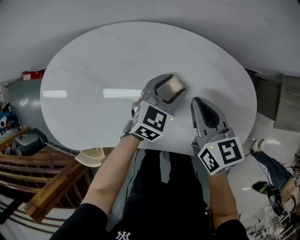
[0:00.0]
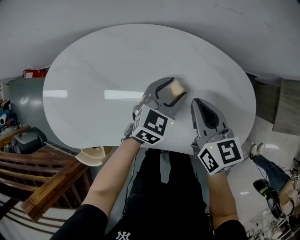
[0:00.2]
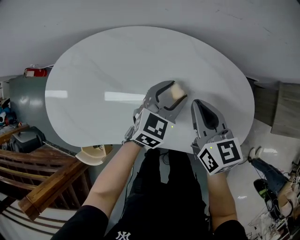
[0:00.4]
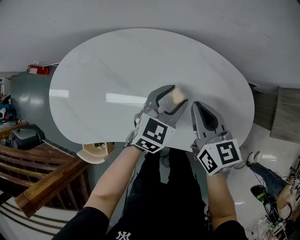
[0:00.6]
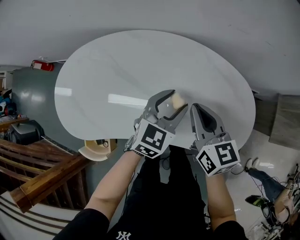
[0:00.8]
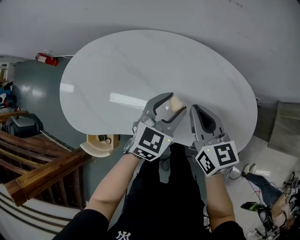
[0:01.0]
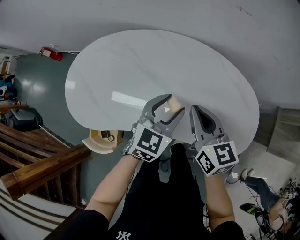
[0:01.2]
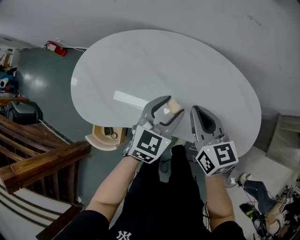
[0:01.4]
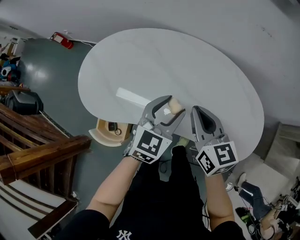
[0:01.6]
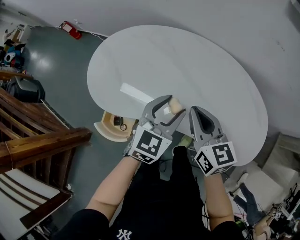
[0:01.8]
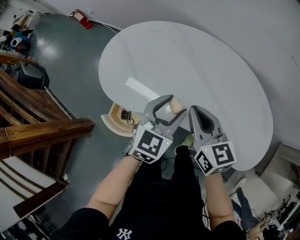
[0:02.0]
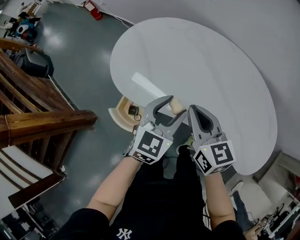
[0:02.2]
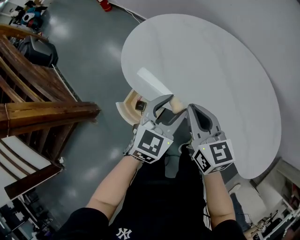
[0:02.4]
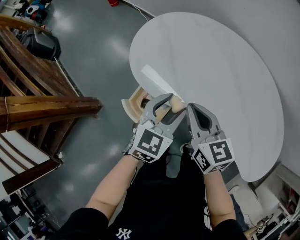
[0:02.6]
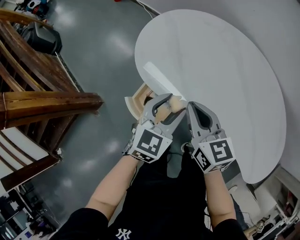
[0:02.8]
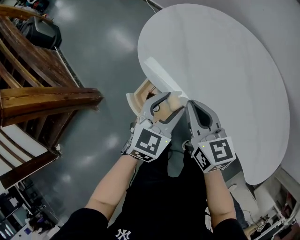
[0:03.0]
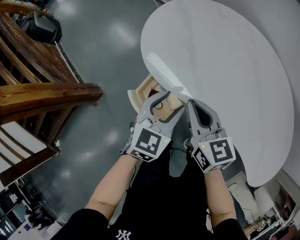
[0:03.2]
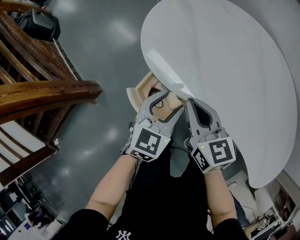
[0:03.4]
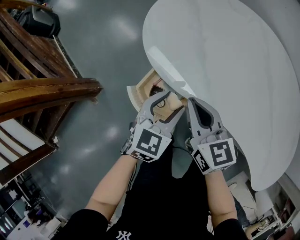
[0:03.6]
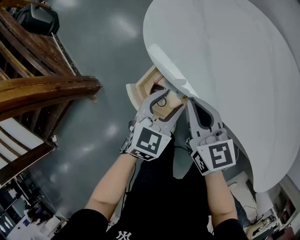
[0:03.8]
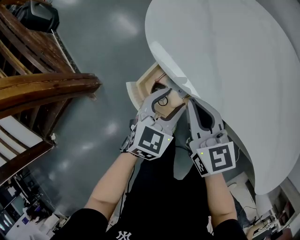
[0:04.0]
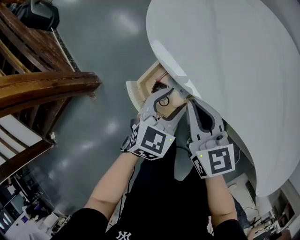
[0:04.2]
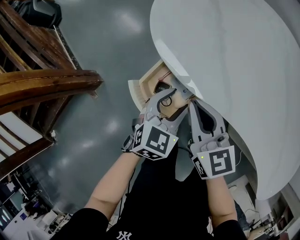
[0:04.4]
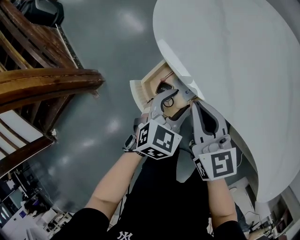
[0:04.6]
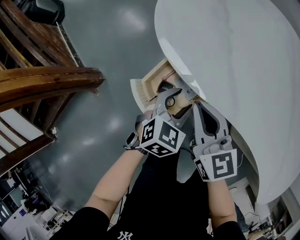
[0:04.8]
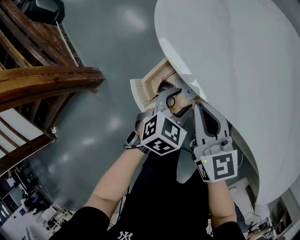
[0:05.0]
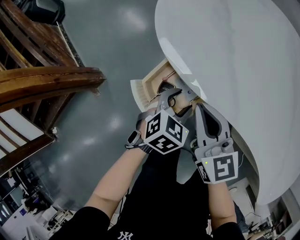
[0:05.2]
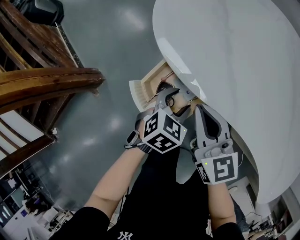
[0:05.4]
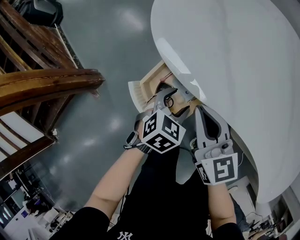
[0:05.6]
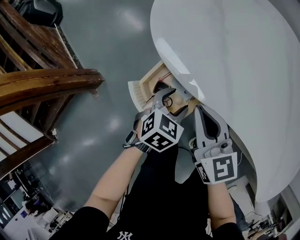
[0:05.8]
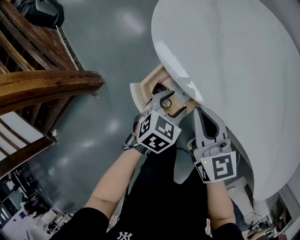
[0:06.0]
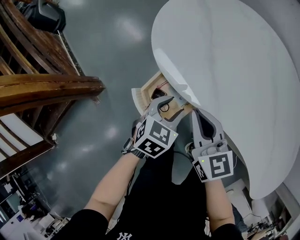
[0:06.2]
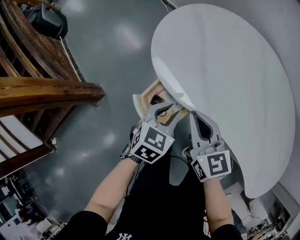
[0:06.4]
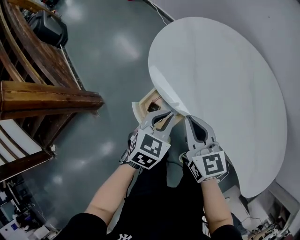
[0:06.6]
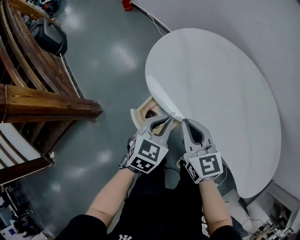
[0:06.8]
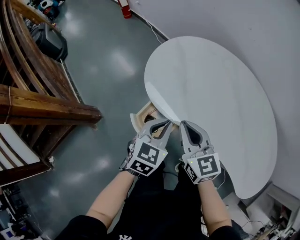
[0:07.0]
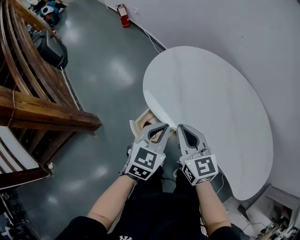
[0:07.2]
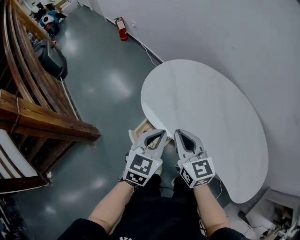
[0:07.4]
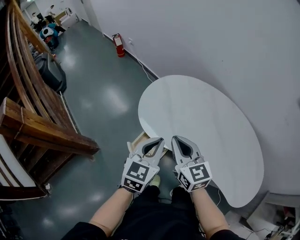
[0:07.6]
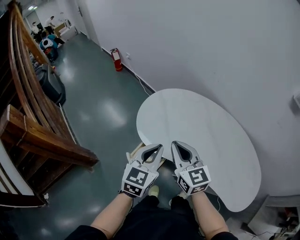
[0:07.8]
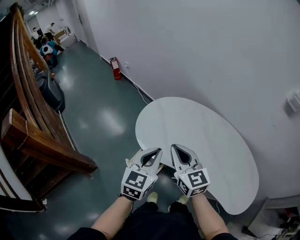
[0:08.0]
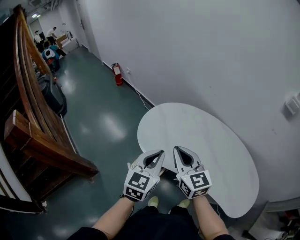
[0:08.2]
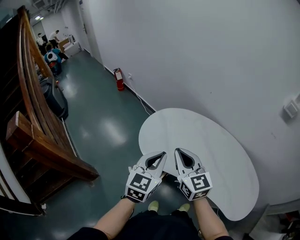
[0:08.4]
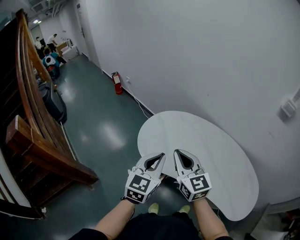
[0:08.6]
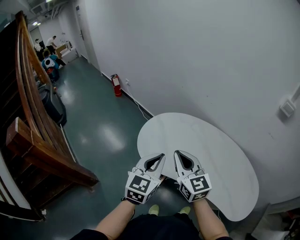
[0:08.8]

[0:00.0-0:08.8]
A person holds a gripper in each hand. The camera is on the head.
0:00.0 to 0:01.4: Both grippers move to the left, upward and backward, approximately 25 cm. The left gripper turns by some 20 degrees.
0:01.4 to 0:03.0: The right gripper changes place by approximately 40 cm, and changes its angle by approximately 30 degrees; the left gripper changes place by about 35 cm, and swivels roughly 30 degrees.
0:03.0 to 0:04.4: The right gripper is displaced downward and to the left by some 15 cm; the left gripper moves downward, approximately 15 cm.
0:04.4 to 0:05.8: The left gripper moves downward, some 5 cm.
0:05.8 to 0:07.4: The right gripper is displaced upward by approximately 25 cm. The left gripper travels upward by approximately 35 cm, swivels about 30 degrees, and closes up.
0:07.4 to 0:08.8: The grippers both shift upward by about 15 cm.

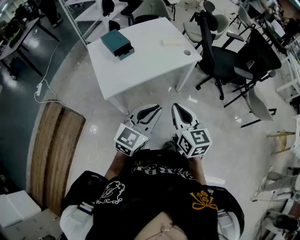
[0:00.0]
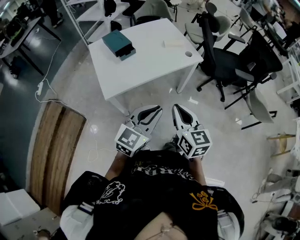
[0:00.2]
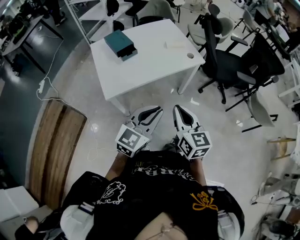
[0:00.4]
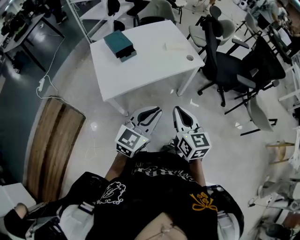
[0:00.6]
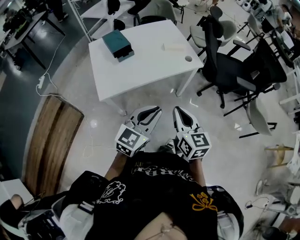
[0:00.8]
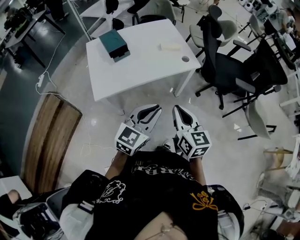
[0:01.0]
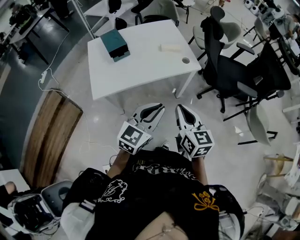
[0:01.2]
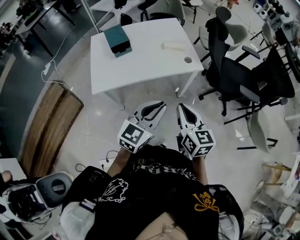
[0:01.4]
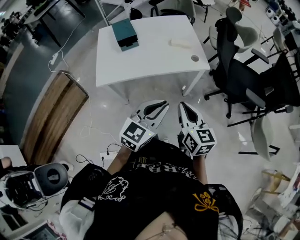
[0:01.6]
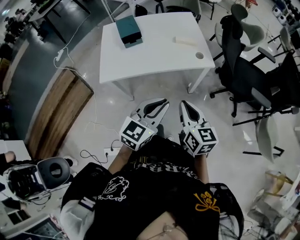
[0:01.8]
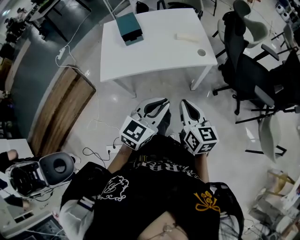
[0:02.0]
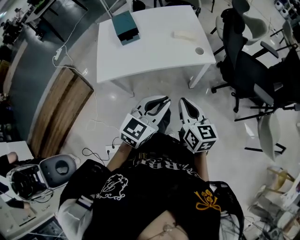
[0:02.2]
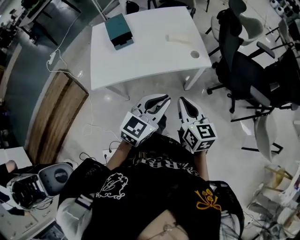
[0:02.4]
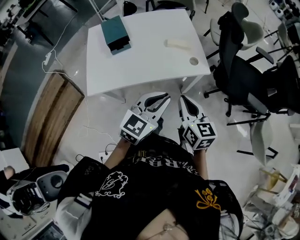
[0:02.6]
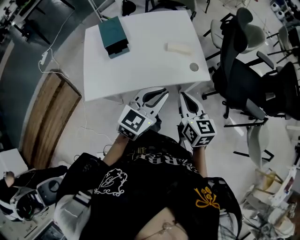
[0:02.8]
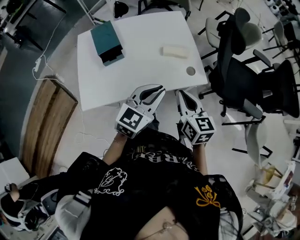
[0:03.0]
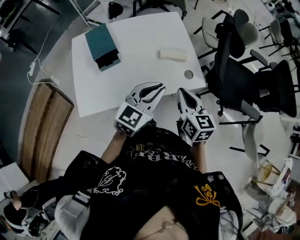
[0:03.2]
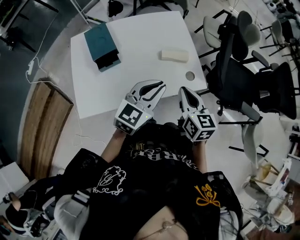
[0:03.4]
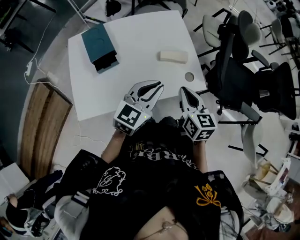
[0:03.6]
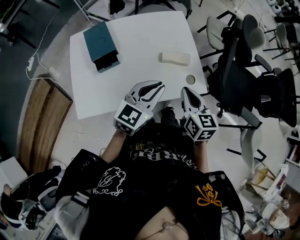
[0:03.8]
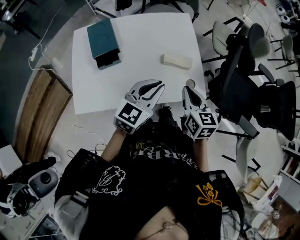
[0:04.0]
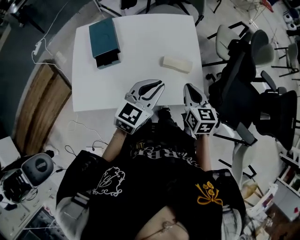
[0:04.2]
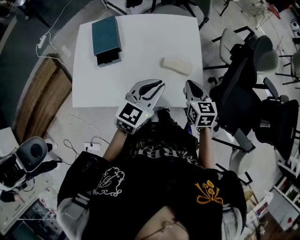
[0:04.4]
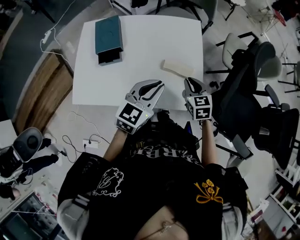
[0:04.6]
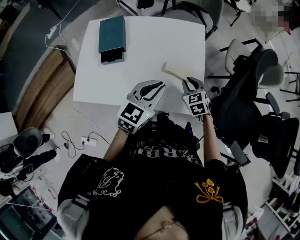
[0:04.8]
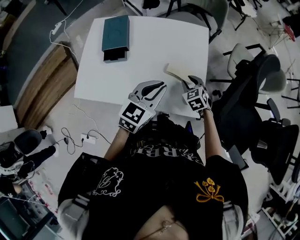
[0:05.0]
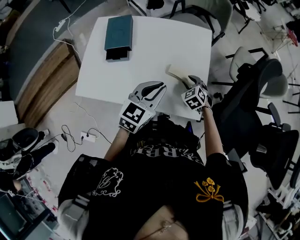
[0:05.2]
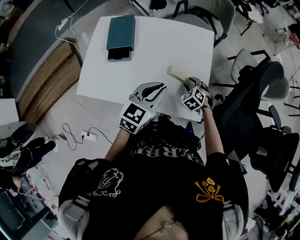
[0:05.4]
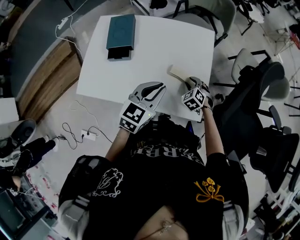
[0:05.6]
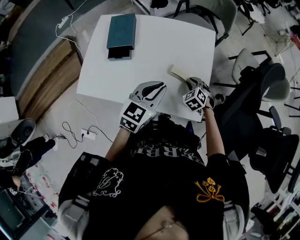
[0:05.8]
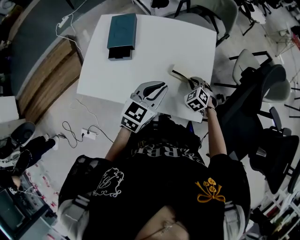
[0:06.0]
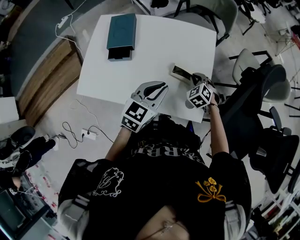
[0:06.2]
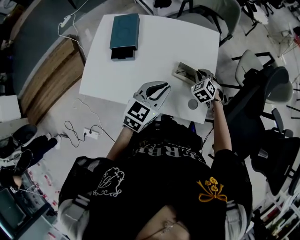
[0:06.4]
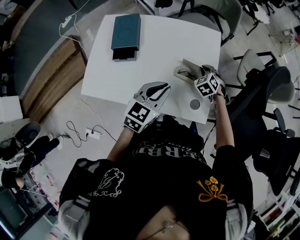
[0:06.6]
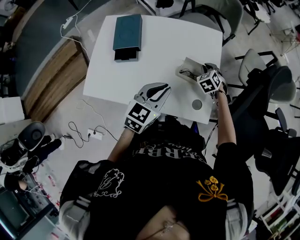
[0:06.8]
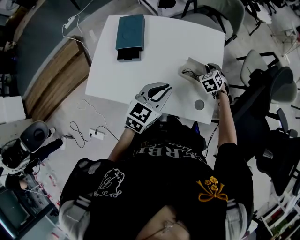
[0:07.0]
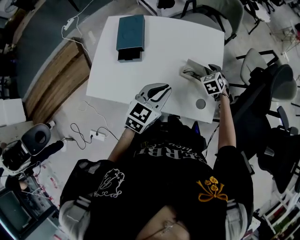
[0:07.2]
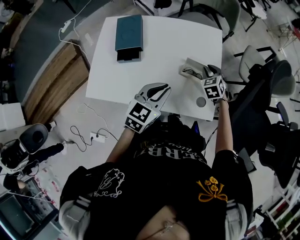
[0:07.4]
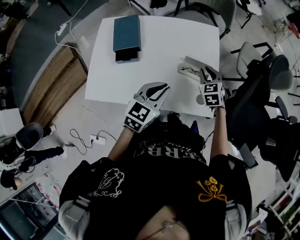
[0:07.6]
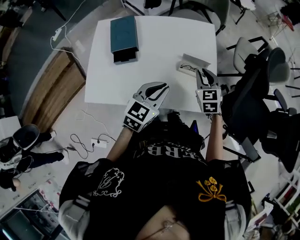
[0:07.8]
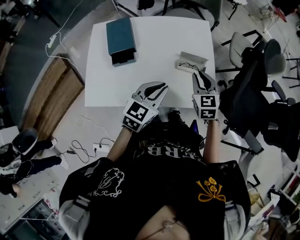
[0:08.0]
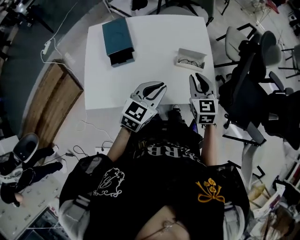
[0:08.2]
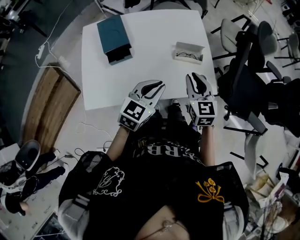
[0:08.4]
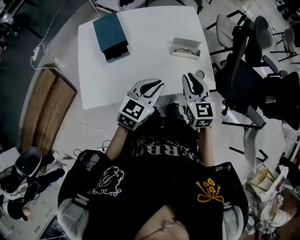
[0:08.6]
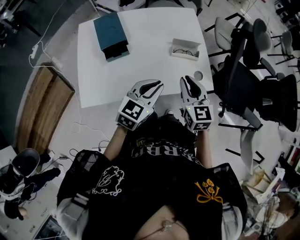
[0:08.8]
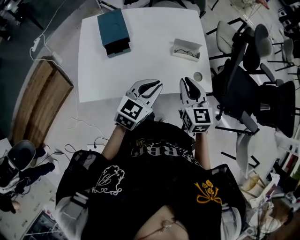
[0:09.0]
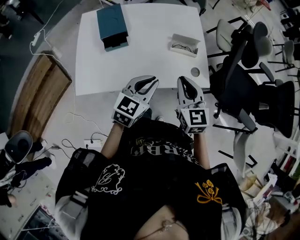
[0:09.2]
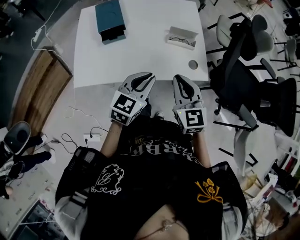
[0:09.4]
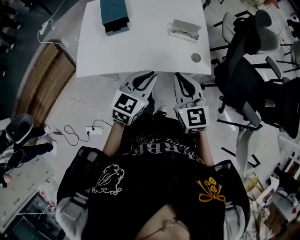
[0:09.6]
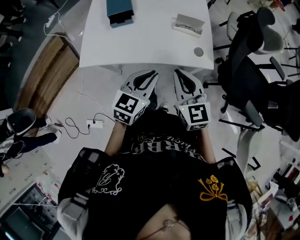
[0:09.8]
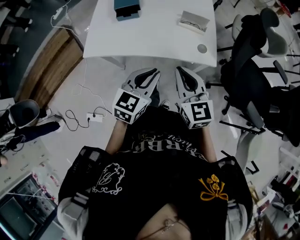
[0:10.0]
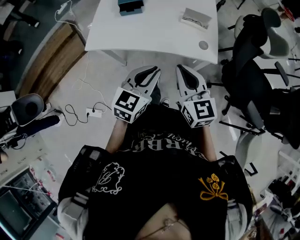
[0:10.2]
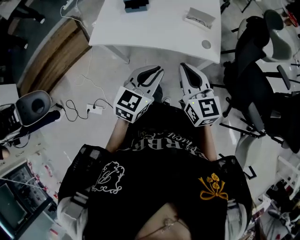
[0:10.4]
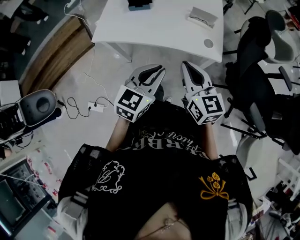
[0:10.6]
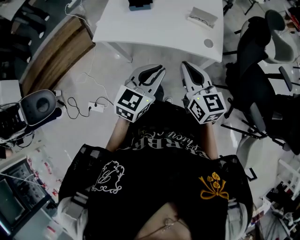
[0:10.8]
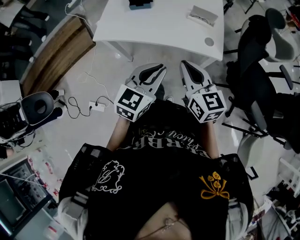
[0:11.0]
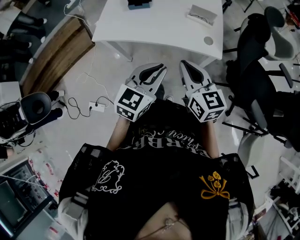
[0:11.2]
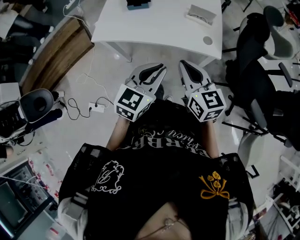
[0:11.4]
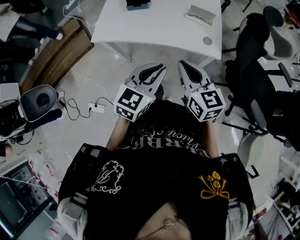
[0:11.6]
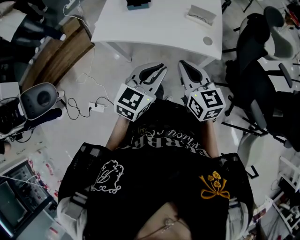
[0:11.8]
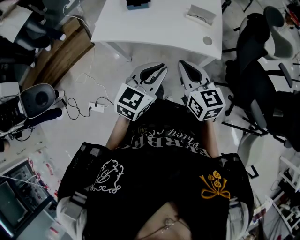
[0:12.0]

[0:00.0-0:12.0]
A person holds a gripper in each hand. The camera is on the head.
0:00.0 to 0:01.6: Both grippers move to the right and forward, roughly 20 cm.
0:01.6 to 0:03.0: Both grippers travel together forward, approximately 25 cm.
0:03.0 to 0:04.4: Both grippers move forward, about 20 cm.
0:04.4 to 0:06.0: The right gripper heads downward and forward, covering some 15 cm, rotates around the line of its fingers by about 50 degrees, counterclockwise from behind, and opens, then closes once more.
0:06.0 to 0:07.6: The left gripper shifts by about 5 cm. Meanwhile the right gripper goes approximately 10 cm upward, moves approximately 10 cm forward and comes back, and swivels roughly 30 degrees.
0:07.6 to 0:09.0: The left gripper travels backward by approximately 10 cm. The right gripper moves backward and upward, approximately 25 cm, and rotates about 30 degrees.
0:09.0 to 0:10.4: The right gripper heads backward, covering some 20 cm, and turns by roughly 30 degrees; the left gripper goes some 20 cm backward and to the right, and changes its angle by some 20 degrees.
0:10.4 to 0:12.0: The grippers make only small movements.

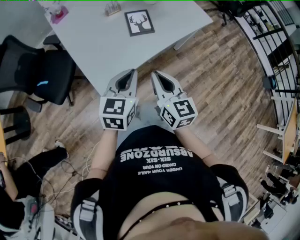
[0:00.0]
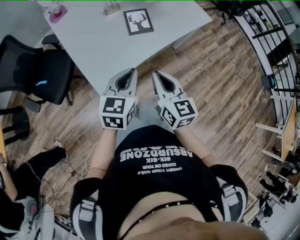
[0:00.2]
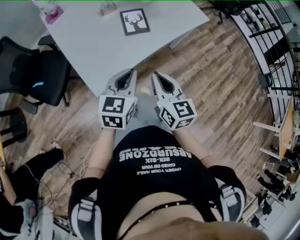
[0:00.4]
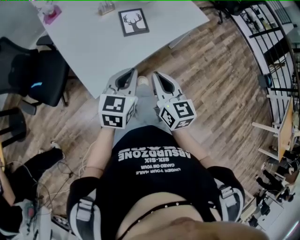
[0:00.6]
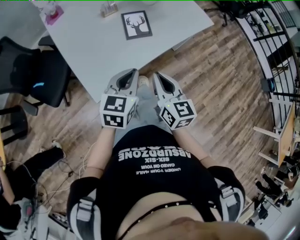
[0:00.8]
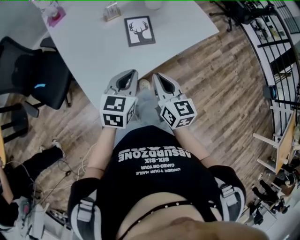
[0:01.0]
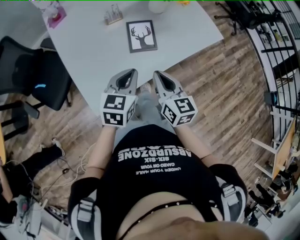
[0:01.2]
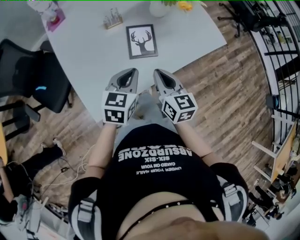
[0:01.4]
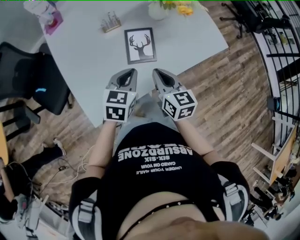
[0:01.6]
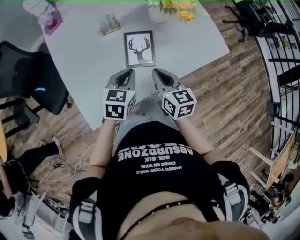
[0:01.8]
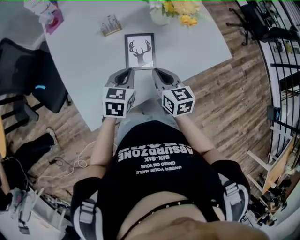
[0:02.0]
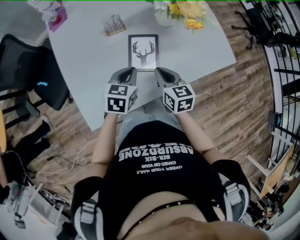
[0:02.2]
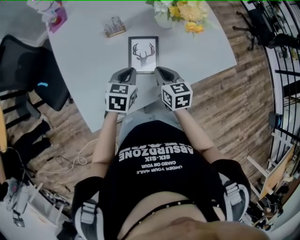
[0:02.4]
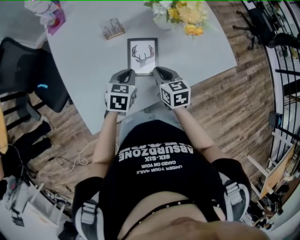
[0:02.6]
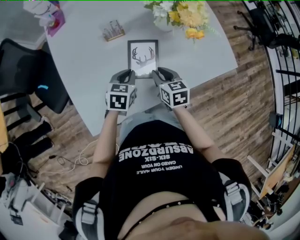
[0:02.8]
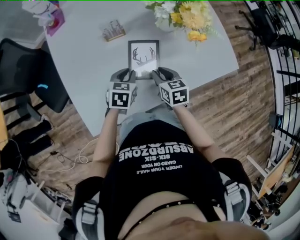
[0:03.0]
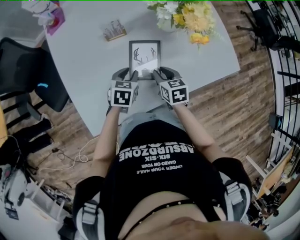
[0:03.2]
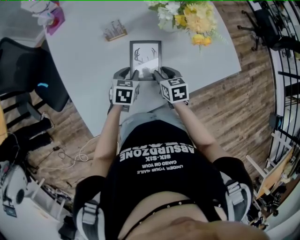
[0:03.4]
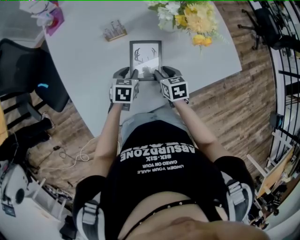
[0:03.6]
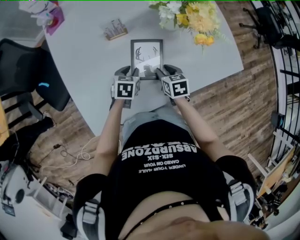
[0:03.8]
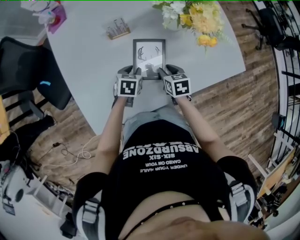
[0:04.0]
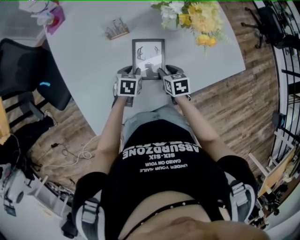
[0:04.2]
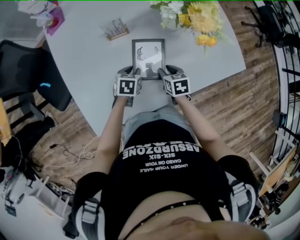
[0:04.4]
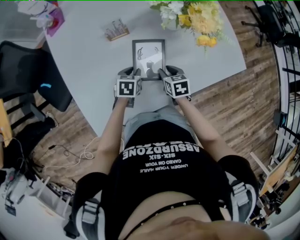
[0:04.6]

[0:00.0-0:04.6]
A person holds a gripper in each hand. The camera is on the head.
0:00.0 to 0:01.6: Both grippers travel together forward, approximately 25 cm.
0:01.6 to 0:03.0: Both grippers travel together downward and forward, roughly 15 cm. The right gripper turns by approximately 20 degrees, and opens its fingers.
0:03.0 to 0:04.6: The two grippers go approximately 10 cm downward.
